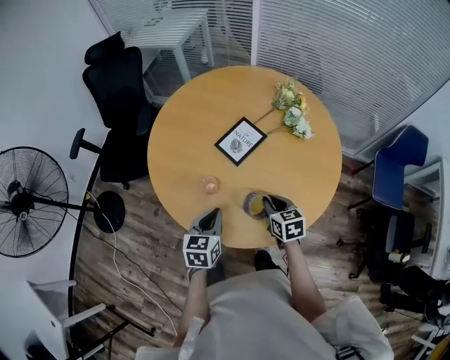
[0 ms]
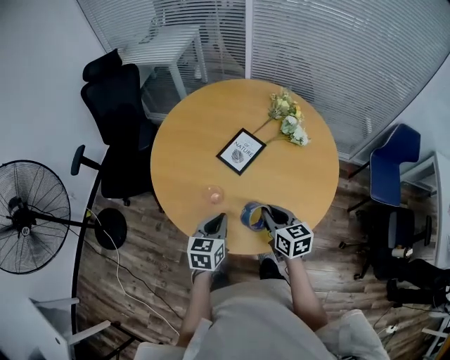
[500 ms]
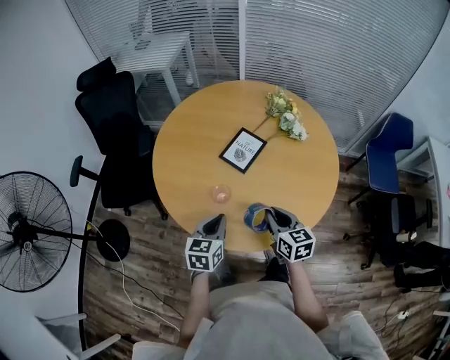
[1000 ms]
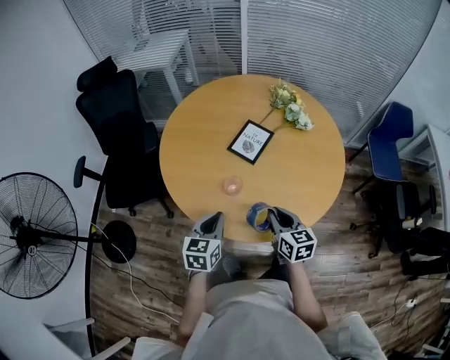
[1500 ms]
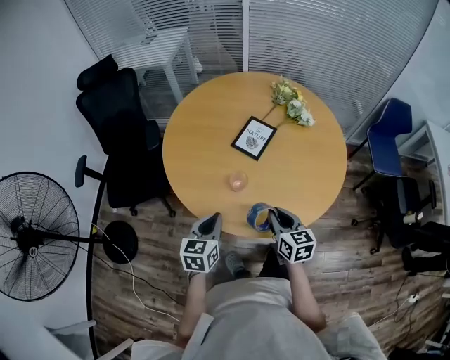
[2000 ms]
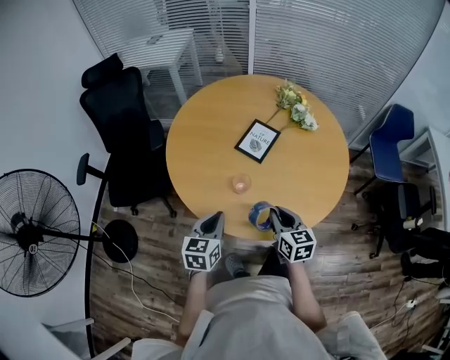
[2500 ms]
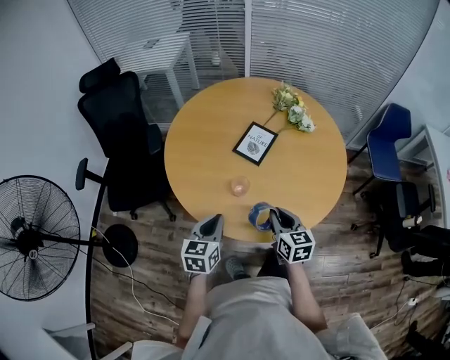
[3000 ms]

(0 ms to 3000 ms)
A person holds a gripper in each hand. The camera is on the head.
0 ms - 1500 ms: The left gripper moves to the left, some 10 cm, while the right gripper goes about 15 cm to the left and backward, and turns by about 20 degrees.
1500 ms - 3000 ms: The grippers make only small movements.

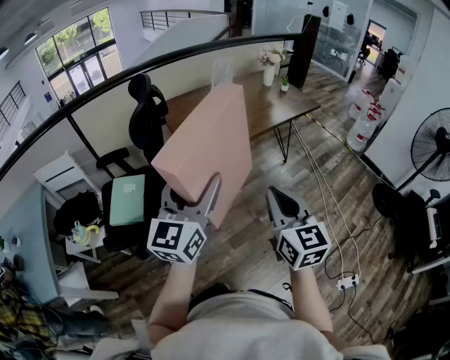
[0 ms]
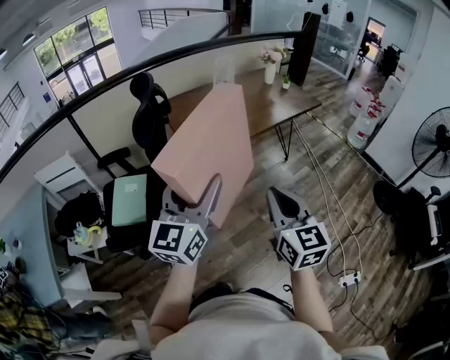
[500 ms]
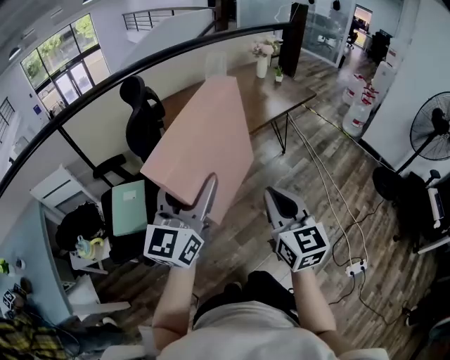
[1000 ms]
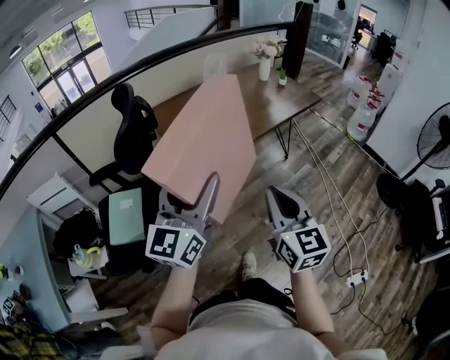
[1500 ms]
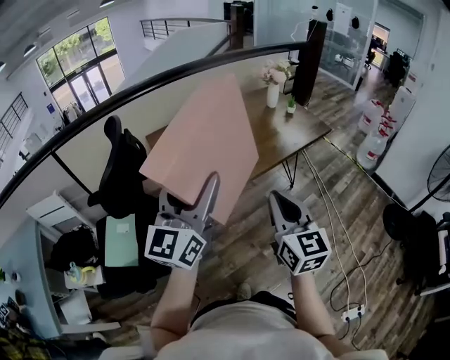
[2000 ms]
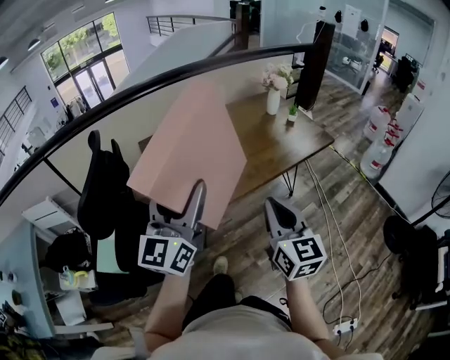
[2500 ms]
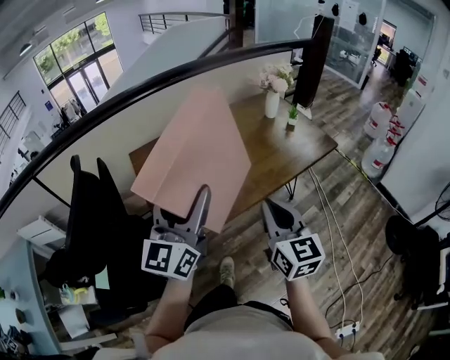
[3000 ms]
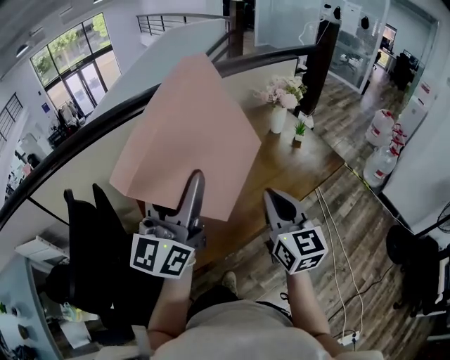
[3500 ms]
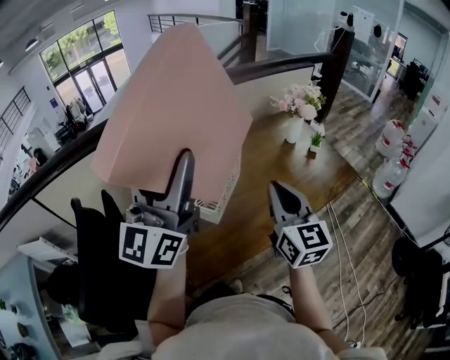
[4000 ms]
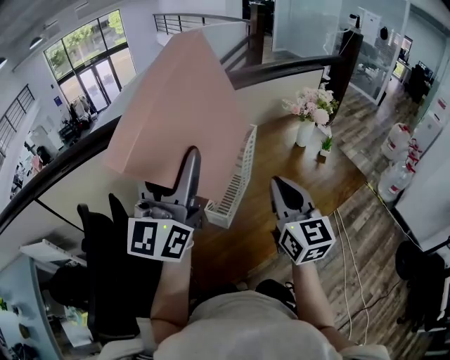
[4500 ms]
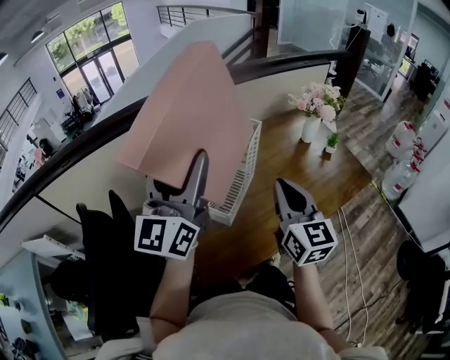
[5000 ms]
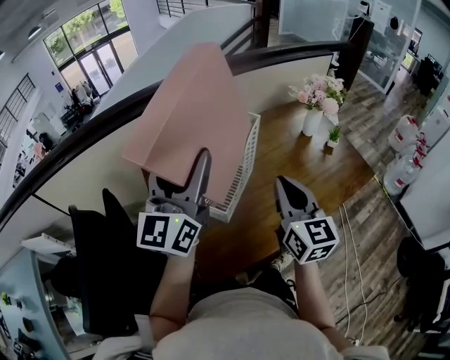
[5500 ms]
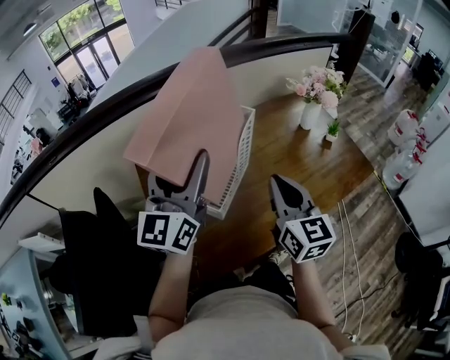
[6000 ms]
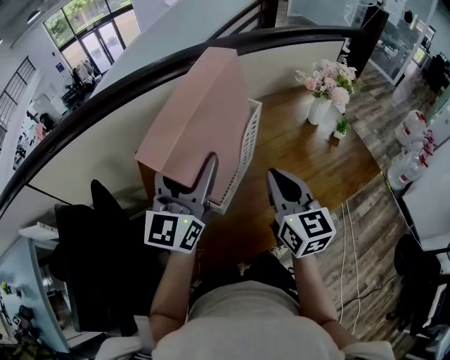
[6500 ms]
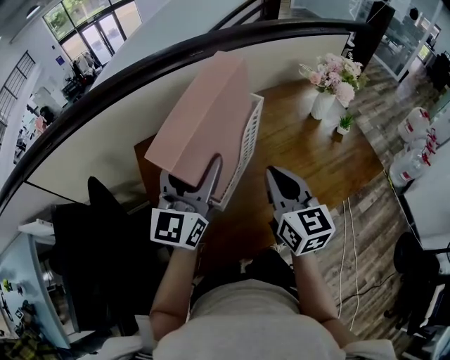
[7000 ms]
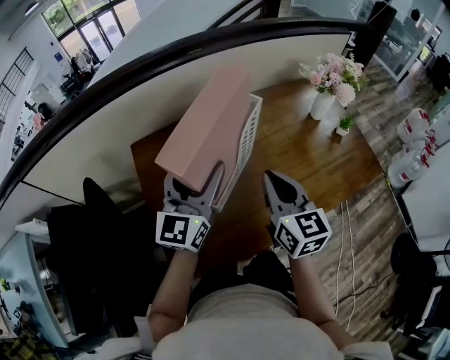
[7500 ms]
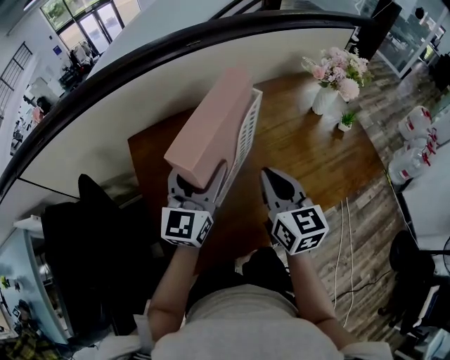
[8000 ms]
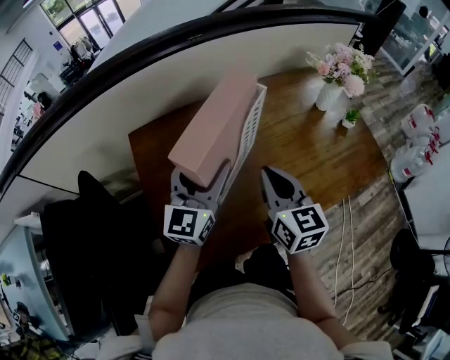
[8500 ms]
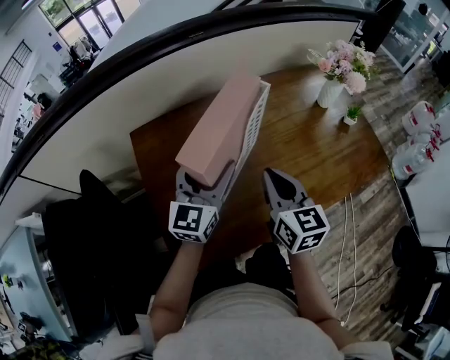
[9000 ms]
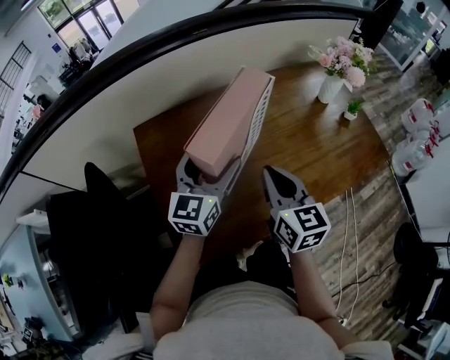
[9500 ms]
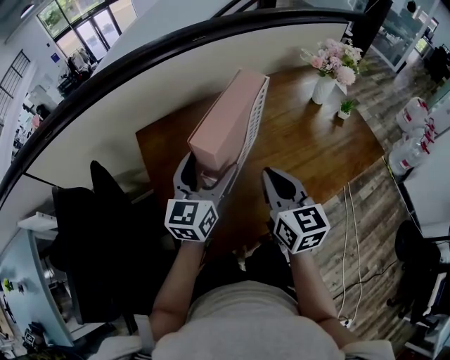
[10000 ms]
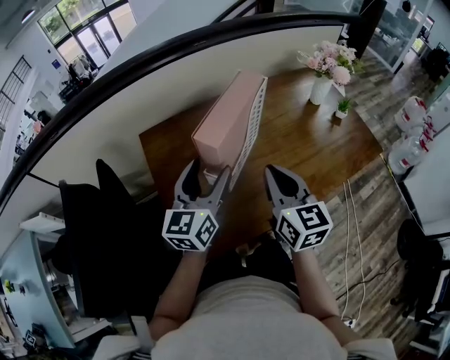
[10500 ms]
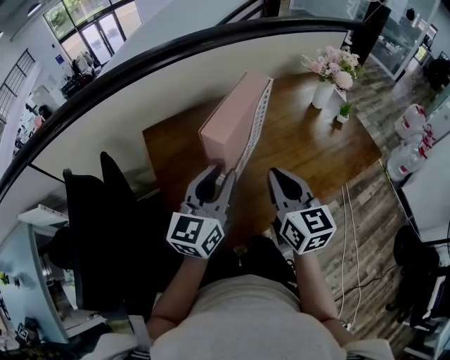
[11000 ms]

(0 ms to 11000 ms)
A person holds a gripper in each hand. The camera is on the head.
0 ms - 2000 ms: Both grippers travel together forward, roughly 20 cm.
2000 ms - 3500 ms: The two grippers go roughly 25 cm forward.
3500 ms - 5500 ms: Both grippers move forward and to the left, about 15 cm.
5500 ms - 7500 ms: The left gripper shifts approximately 15 cm downward. Meanwhile the right gripper goes approximately 5 cm downward.
7500 ms - 9000 ms: The left gripper goes roughly 5 cm downward.
9000 ms - 11000 ms: Both grippers travel together backward, roughly 10 cm. The left gripper closes up.

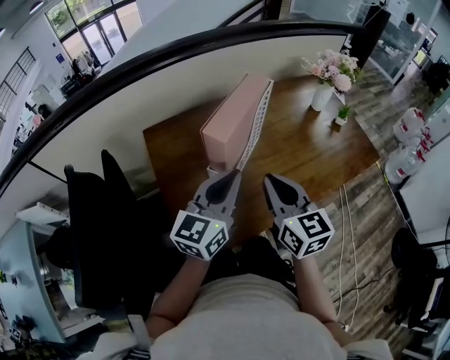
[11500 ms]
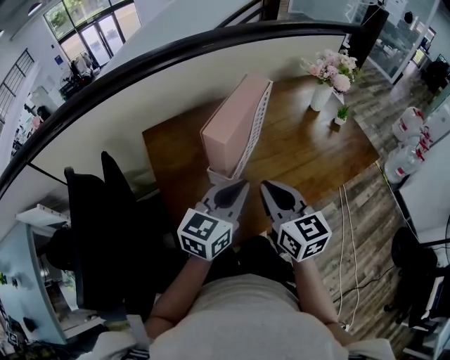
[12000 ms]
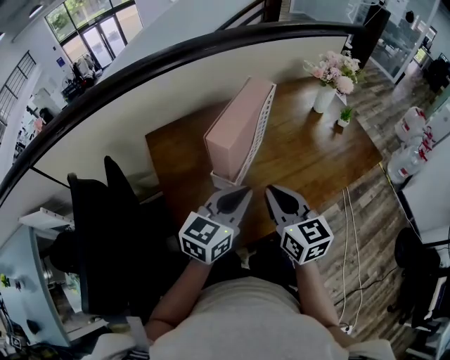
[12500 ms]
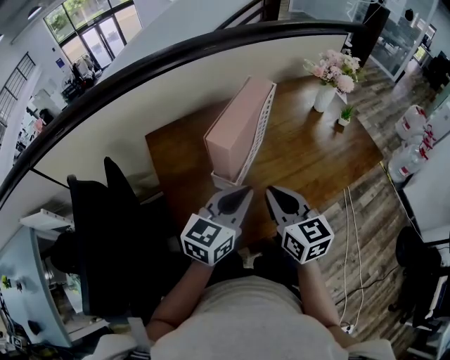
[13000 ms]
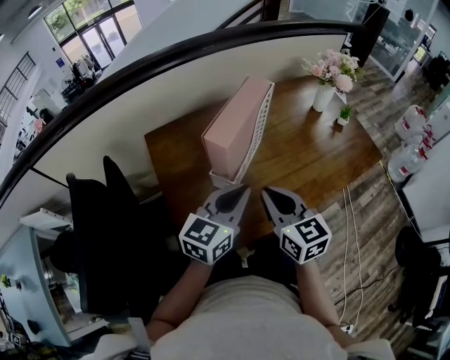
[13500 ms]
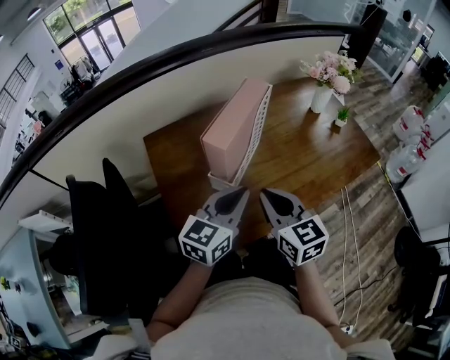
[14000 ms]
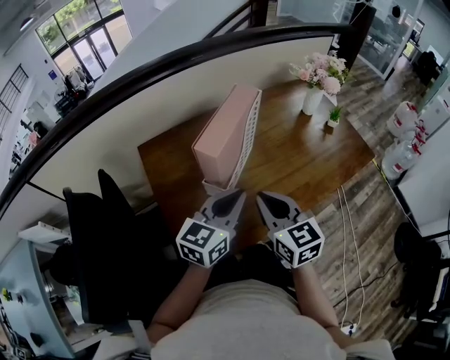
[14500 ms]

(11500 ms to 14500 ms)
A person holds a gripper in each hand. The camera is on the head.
11500 ms - 14500 ms: There are only small adjustments of the grippers.

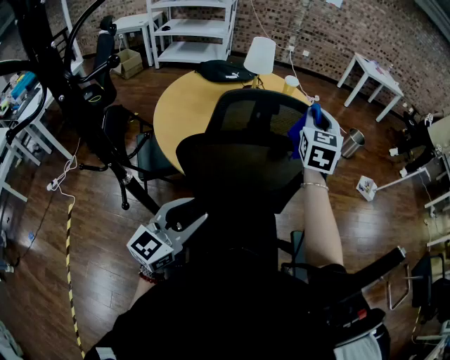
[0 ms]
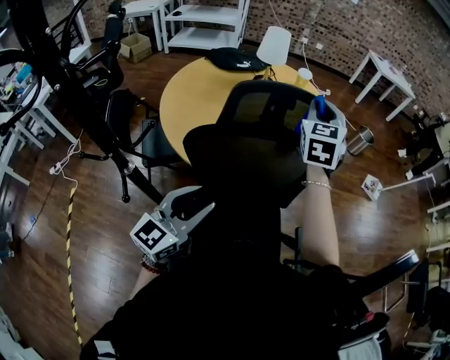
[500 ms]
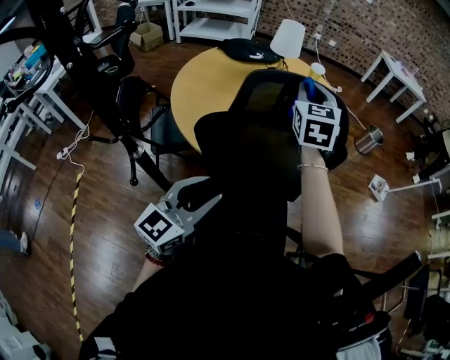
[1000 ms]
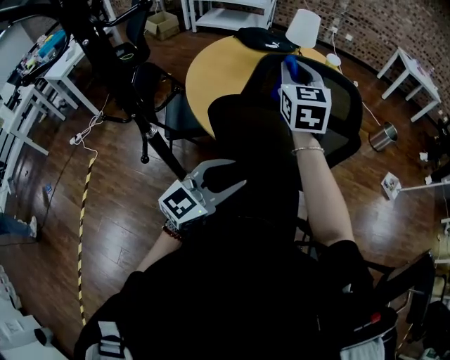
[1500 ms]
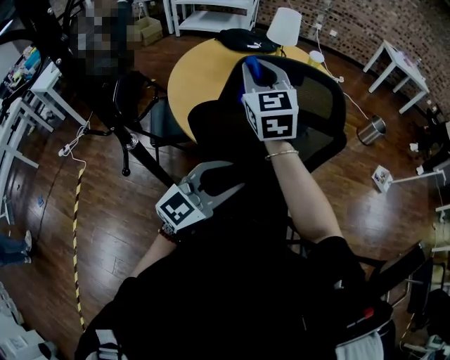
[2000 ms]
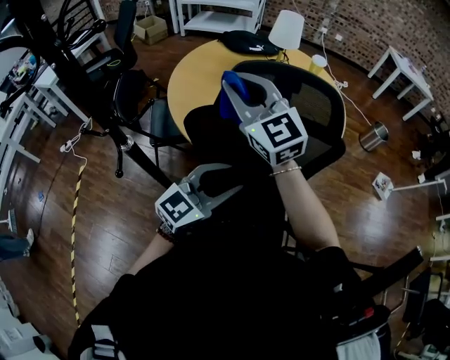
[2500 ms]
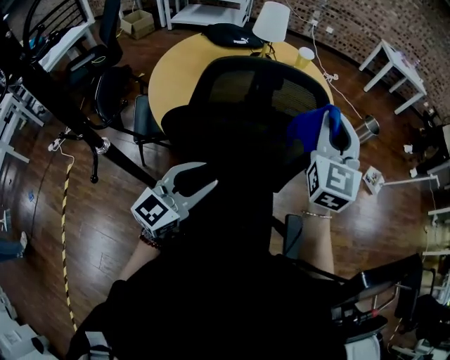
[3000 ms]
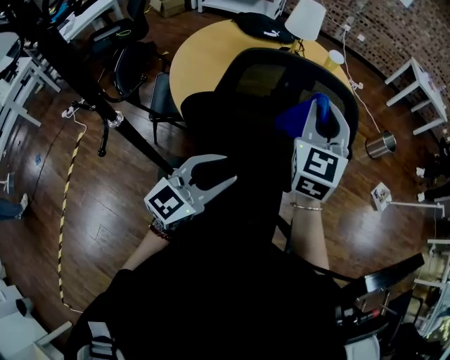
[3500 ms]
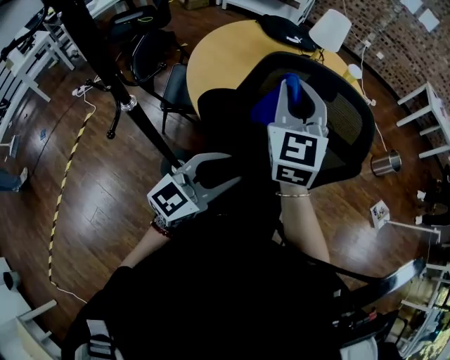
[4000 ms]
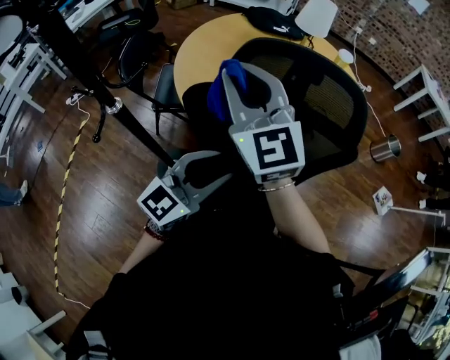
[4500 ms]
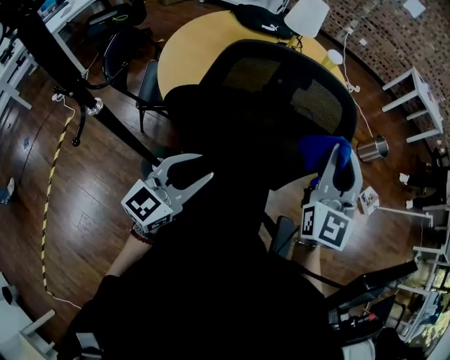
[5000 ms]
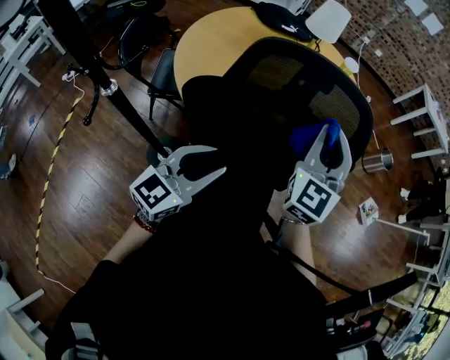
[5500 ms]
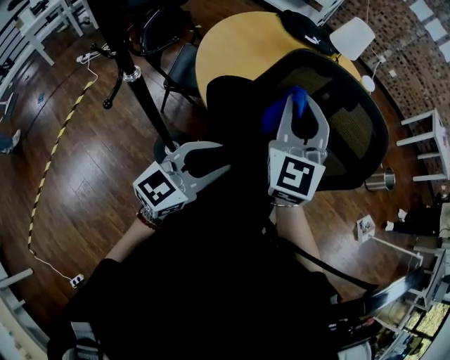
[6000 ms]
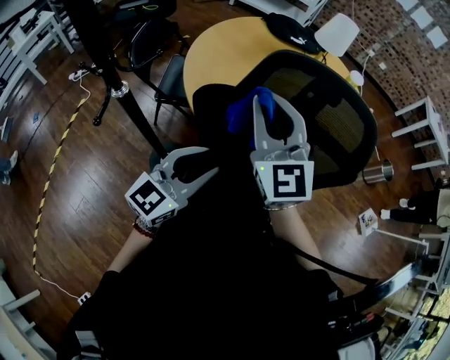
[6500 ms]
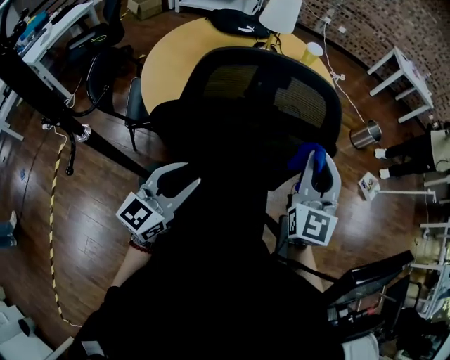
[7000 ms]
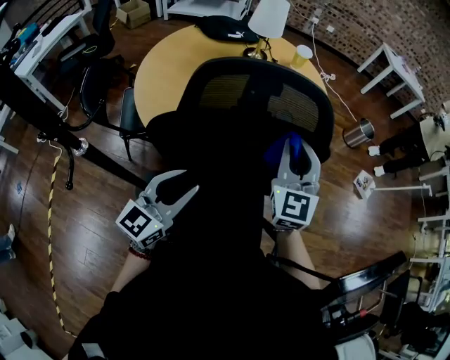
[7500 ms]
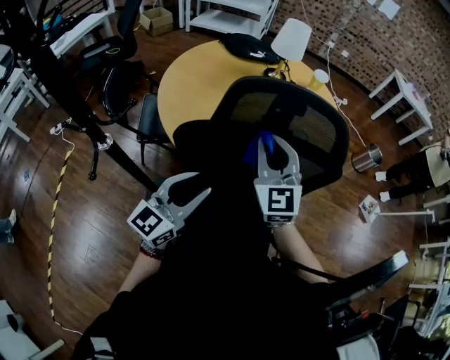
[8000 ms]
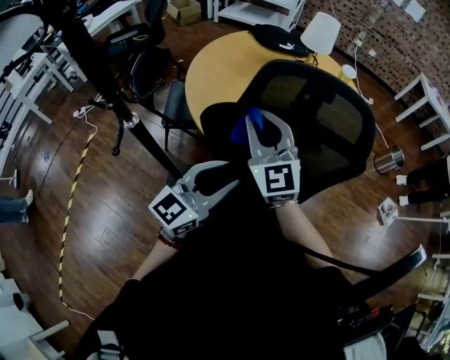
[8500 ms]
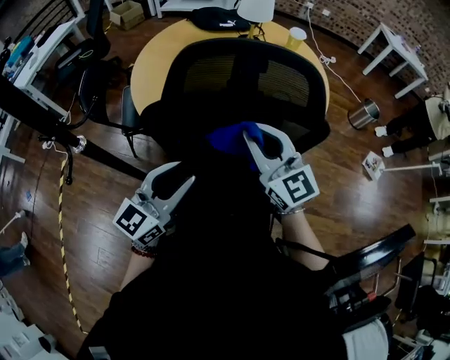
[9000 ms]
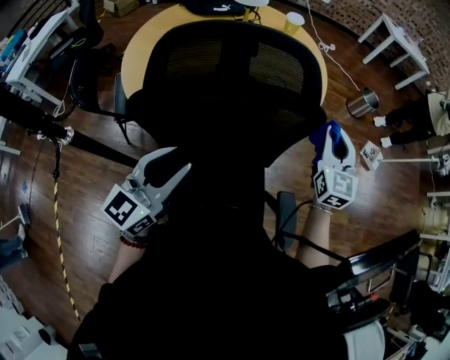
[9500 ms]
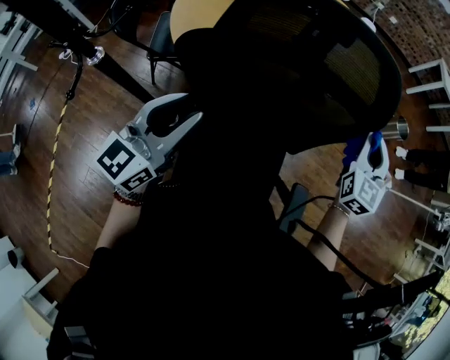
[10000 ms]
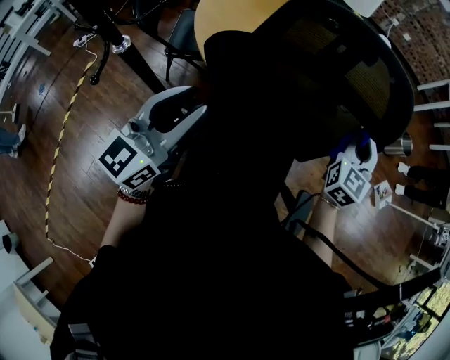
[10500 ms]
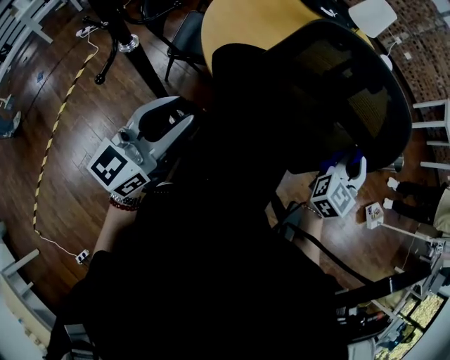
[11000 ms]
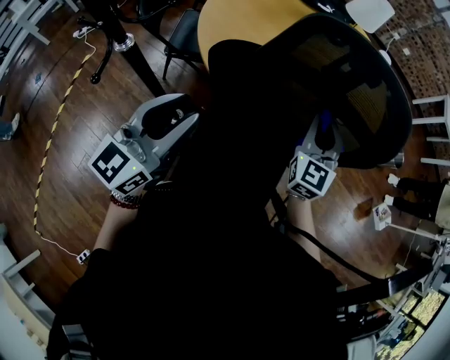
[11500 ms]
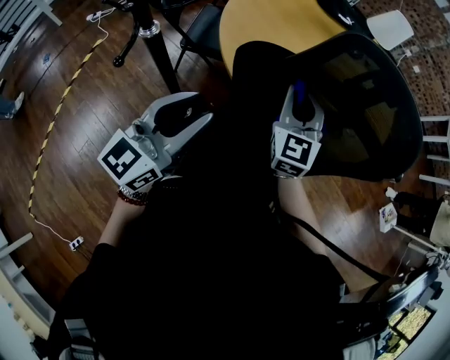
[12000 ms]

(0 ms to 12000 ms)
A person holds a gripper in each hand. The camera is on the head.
0 ms - 2000 ms: The left gripper is displaced to the right by roughly 5 cm. Meanwhile the right gripper shifts approximately 20 cm to the left, and changes its angle by some 30 degrees.
2000 ms - 4000 ms: The right gripper moves roughly 25 cm to the right and comes back.
4000 ms - 6000 ms: The right gripper moves left and right over roughly 30 cm, changing direction 2 times.
6000 ms - 8000 ms: The right gripper moves downward, approximately 5 cm, and moves some 20 cm to the right and comes back.
8000 ms - 10000 ms: The right gripper travels to the right by roughly 30 cm, and changes its angle by approximately 20 degrees.
10000 ms - 12000 ms: The right gripper shifts about 35 cm to the left, and turns by about 30 degrees; the left gripper travels to the left by roughly 10 cm.
